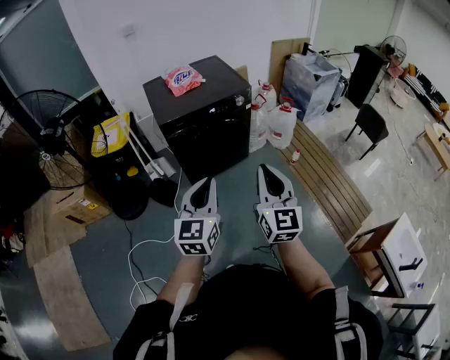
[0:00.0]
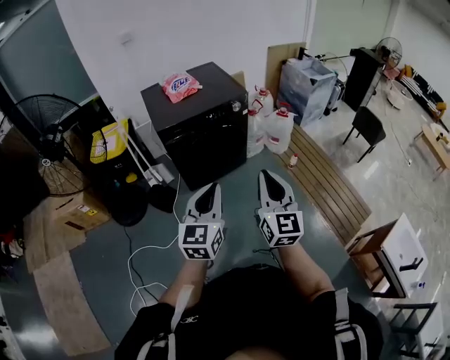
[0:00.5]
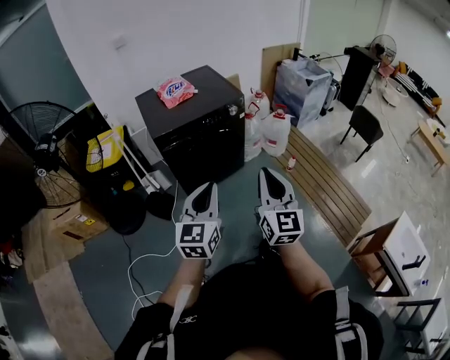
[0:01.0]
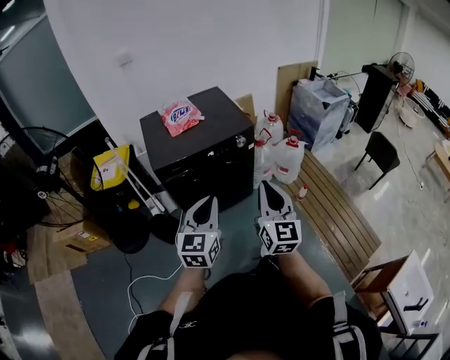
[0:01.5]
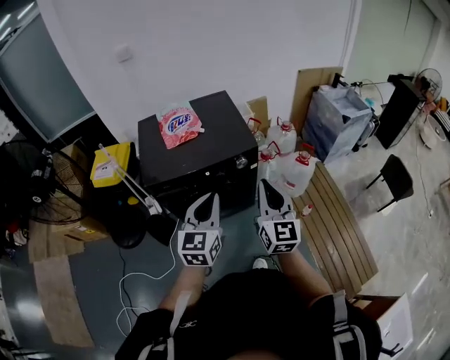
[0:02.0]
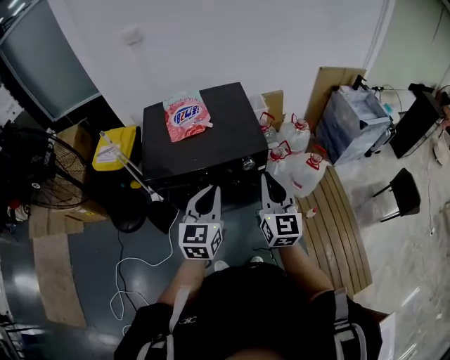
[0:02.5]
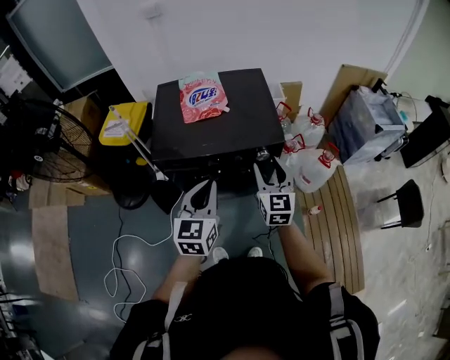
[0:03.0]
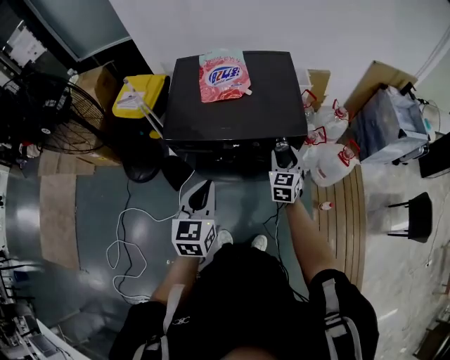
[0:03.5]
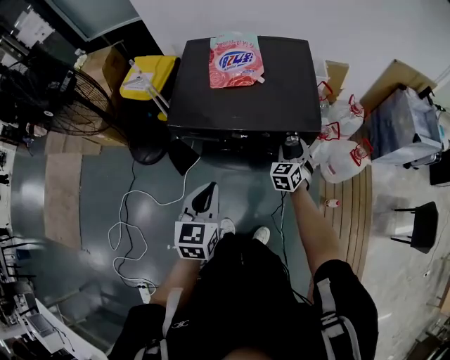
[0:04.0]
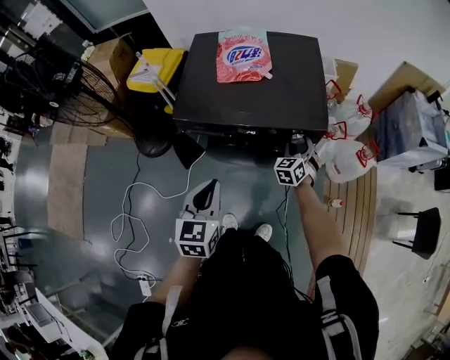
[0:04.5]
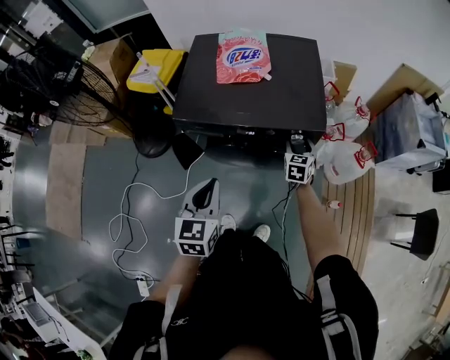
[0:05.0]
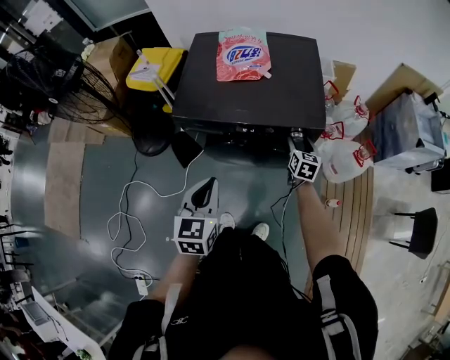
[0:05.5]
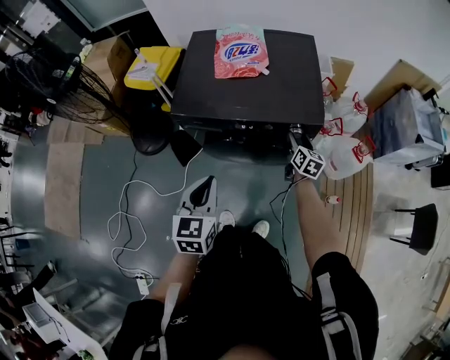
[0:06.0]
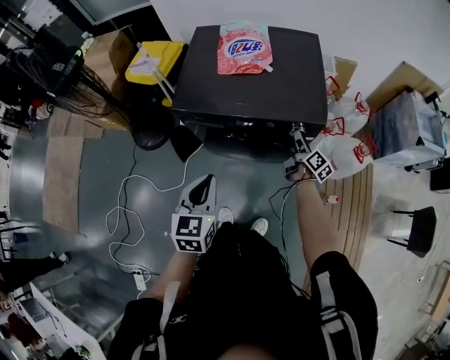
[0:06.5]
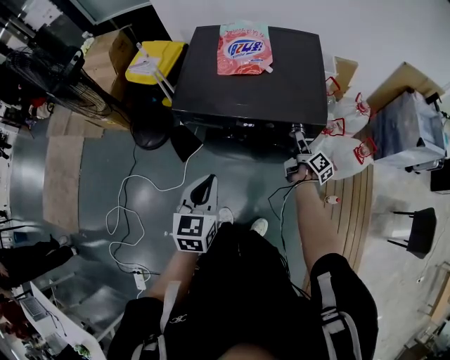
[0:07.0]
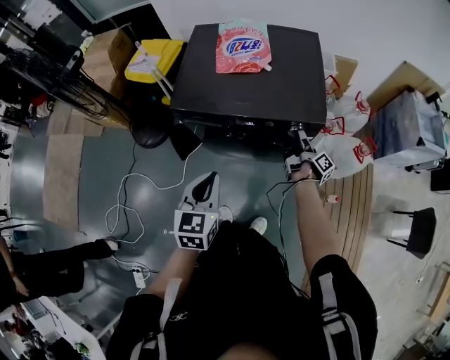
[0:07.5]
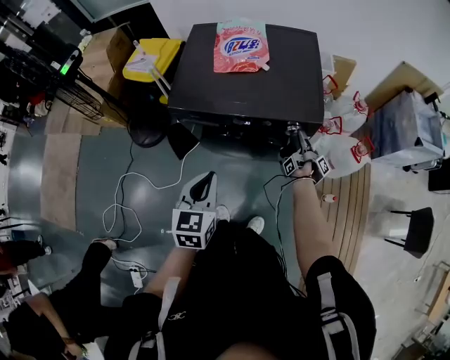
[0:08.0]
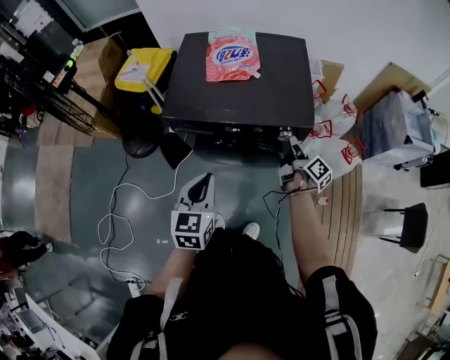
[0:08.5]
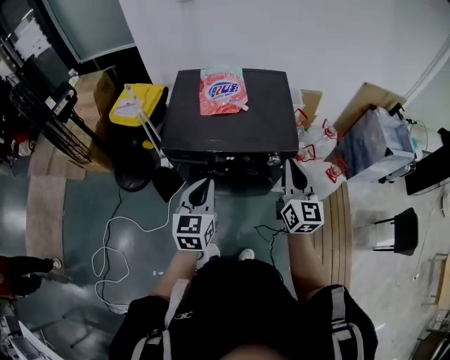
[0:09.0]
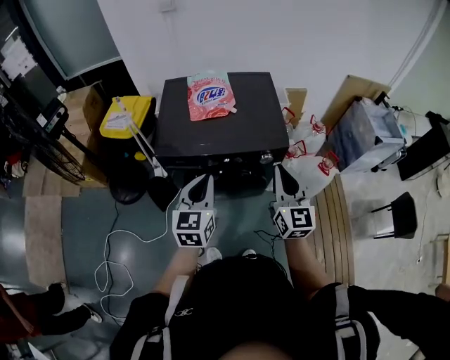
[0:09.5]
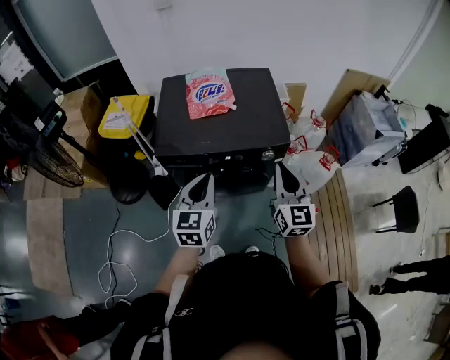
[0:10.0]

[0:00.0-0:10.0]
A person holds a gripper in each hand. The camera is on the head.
0:00.0 to 0:02.0: The grippers both shift forward by approximately 35 cm.
0:02.0 to 0:04.0: The right gripper shifts about 40 cm downward and forward, tilts its fingers roughly 30 degrees downward, and opens its fingers; the left gripper heads downward and to the left, covering roughly 15 cm, and rotates about 30 degrees.
0:04.0 to 0:06.0: The right gripper rolls clockwise, seen from behind, by approximately 50 degrees.
0:06.0 to 0:08.0: The right gripper rolls clockwise, seen from behind, by about 90 degrees.
0:08.0 to 0:10.0: The left gripper heads upward and forward, covering some 10 cm; the right gripper heads upward and backward, covering roughly 30 cm, rotates around the line of its fingers by some 120 degrees, counterclockwise from behind, and closes its fingers.

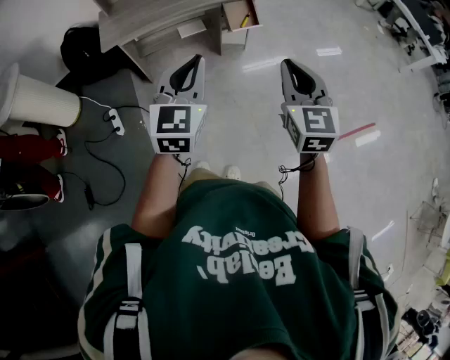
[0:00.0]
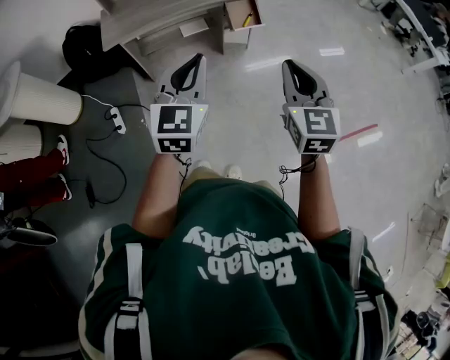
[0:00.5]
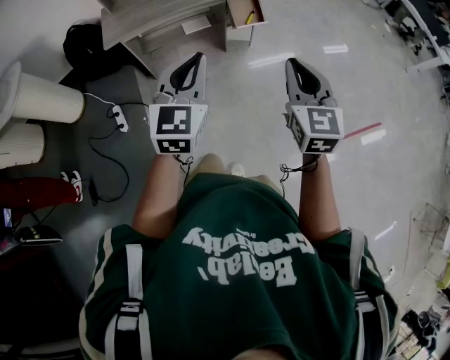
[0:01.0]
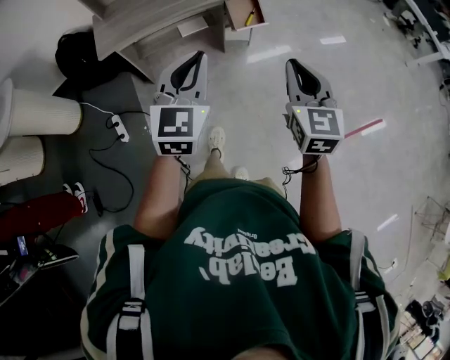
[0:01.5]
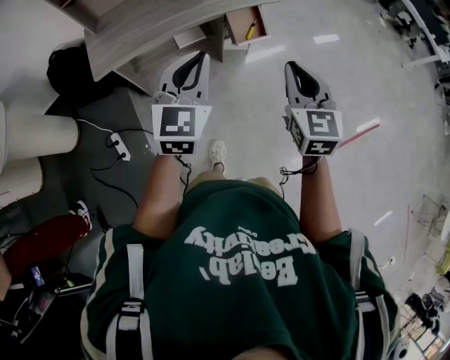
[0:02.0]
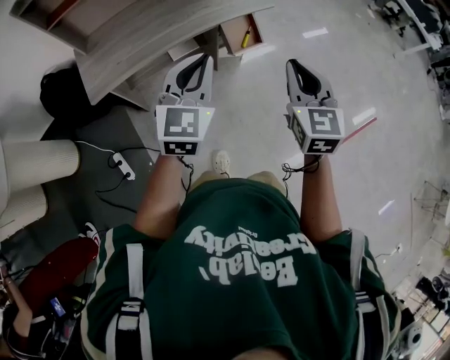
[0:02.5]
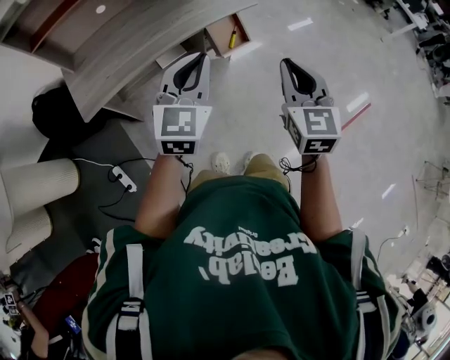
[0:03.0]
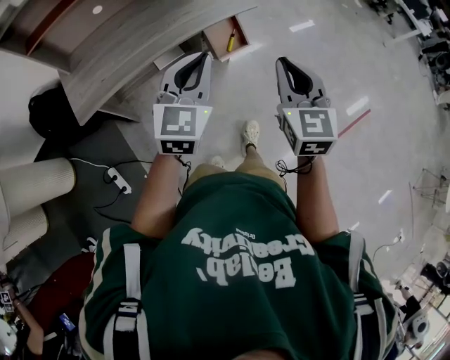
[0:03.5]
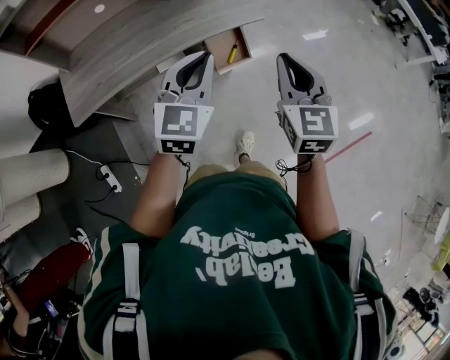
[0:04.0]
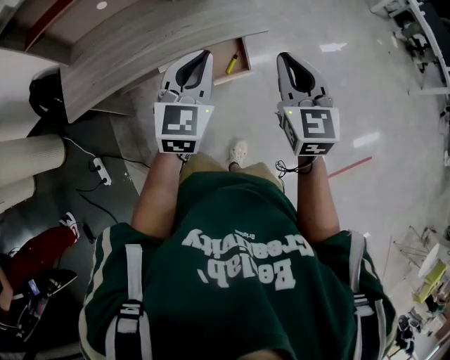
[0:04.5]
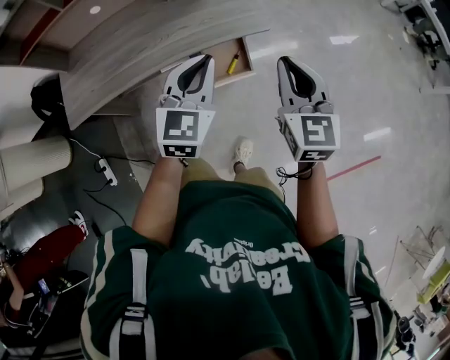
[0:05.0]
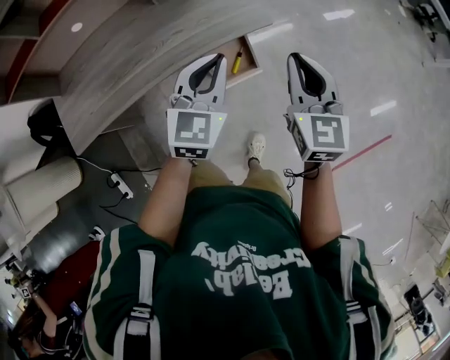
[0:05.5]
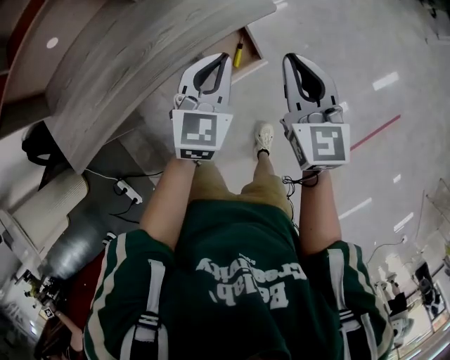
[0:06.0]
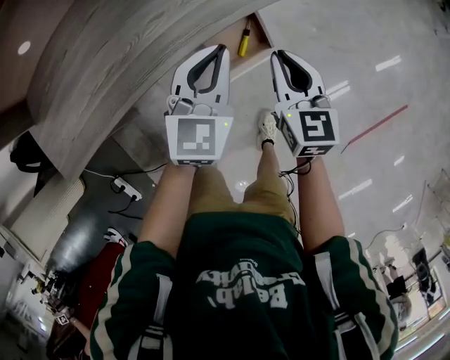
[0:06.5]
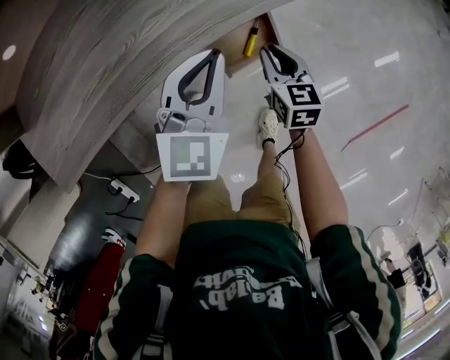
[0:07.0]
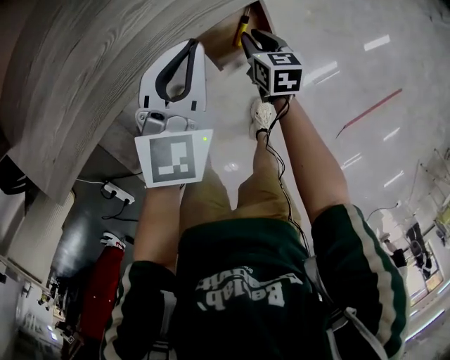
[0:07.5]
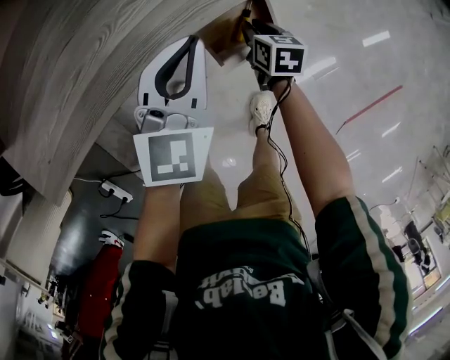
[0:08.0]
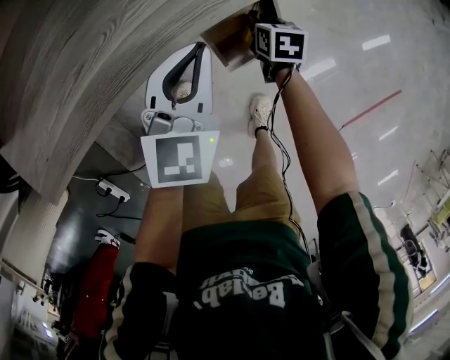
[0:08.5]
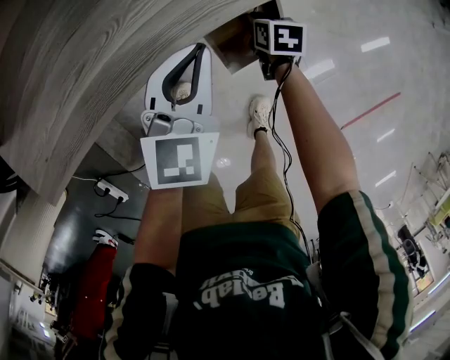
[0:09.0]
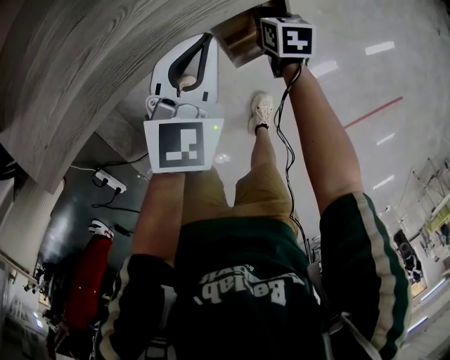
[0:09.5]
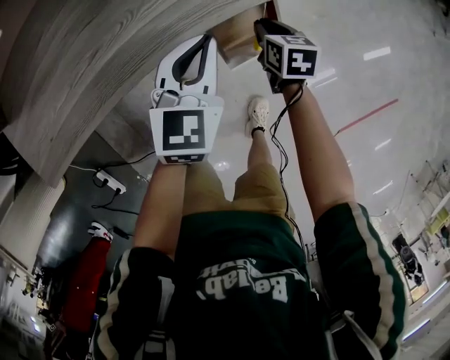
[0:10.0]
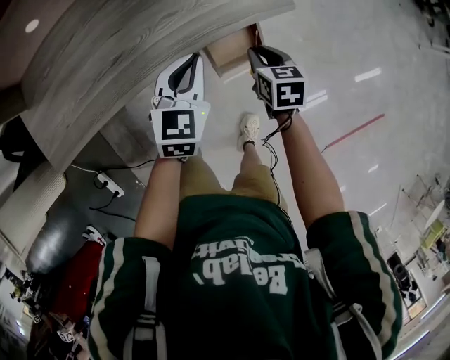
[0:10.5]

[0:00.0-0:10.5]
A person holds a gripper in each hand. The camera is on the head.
0:00.0 to 0:02.0: The grippers both shift forward by roughly 25 cm.
0:02.0 to 0:04.0: The grippers both shift forward by about 25 cm.
0:04.0 to 0:06.5: The left gripper heads forward and downward, covering some 40 cm. The right gripper heads downward and forward, covering approximately 50 cm, and rotates some 20 degrees.
0:06.5 to 0:08.5: The left gripper shifts some 10 cm downward and to the left. The right gripper goes approximately 30 cm downward, and points its fingers approximately 30 degrees further downward.
0:08.5 to 0:10.5: The right gripper shifts some 20 cm upward. Meanwhile the left gripper heads upward, covering roughly 10 cm.

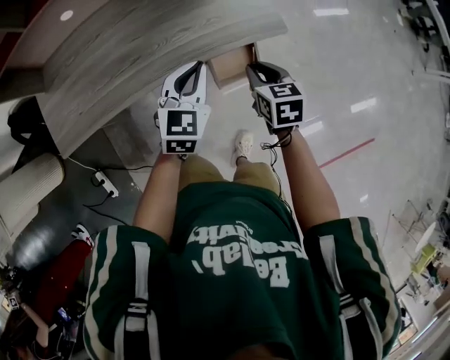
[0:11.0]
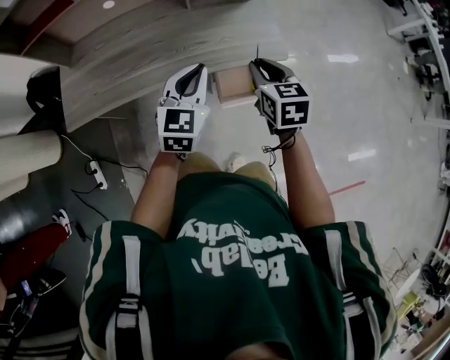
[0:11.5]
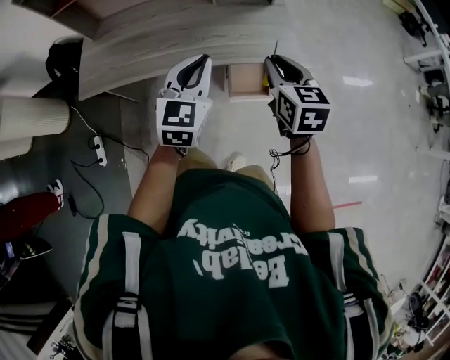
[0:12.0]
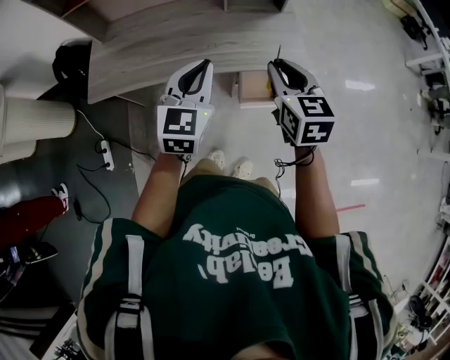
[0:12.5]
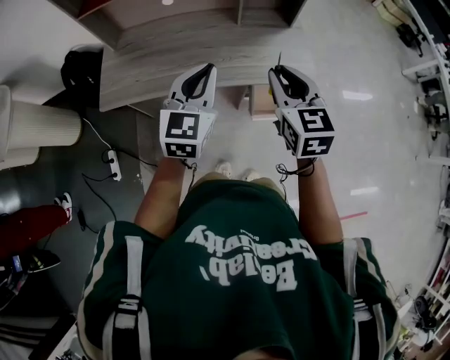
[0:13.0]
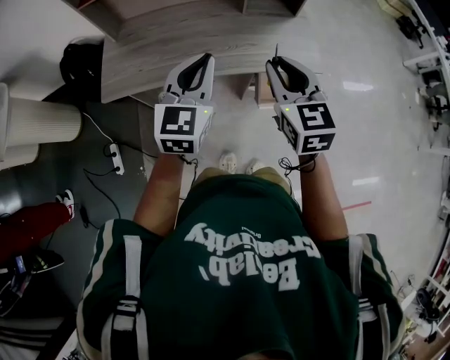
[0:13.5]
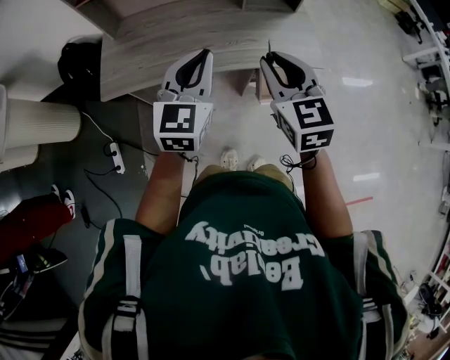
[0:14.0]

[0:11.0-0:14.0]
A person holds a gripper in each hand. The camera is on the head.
0:11.0 to 0:12.5: The right gripper shifts some 25 cm upward, and changes its angle by about 30 degrees; the left gripper goes some 20 cm upward and backward, and swivels about 20 degrees.
0:12.5 to 0:14.0: The two grippers go about 15 cm to the left.

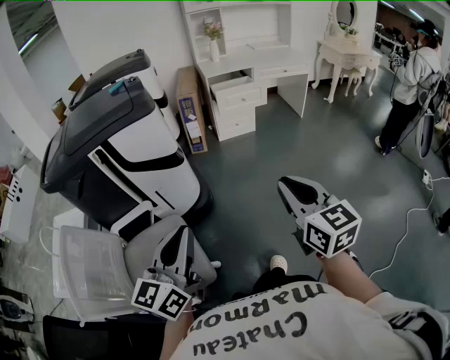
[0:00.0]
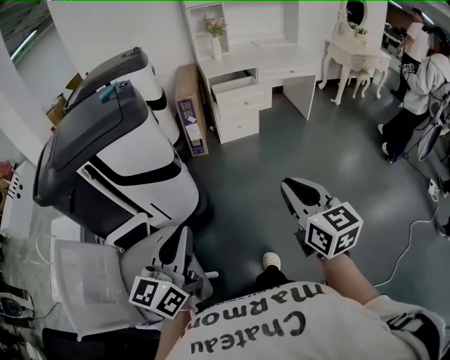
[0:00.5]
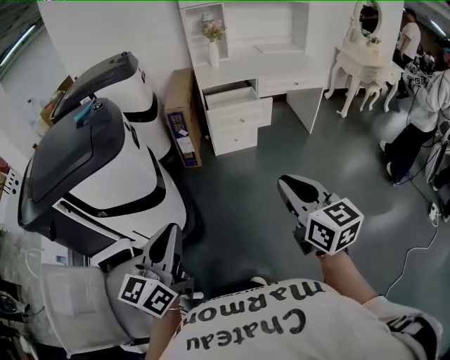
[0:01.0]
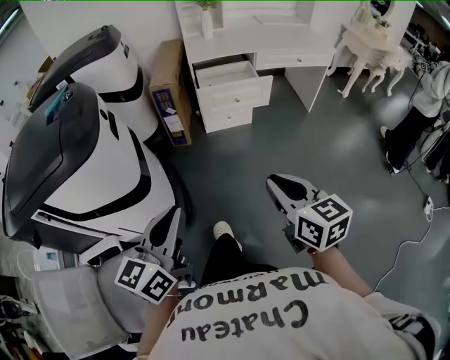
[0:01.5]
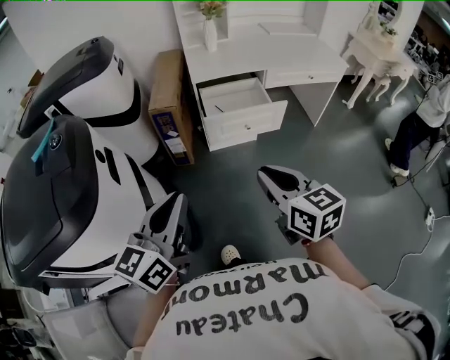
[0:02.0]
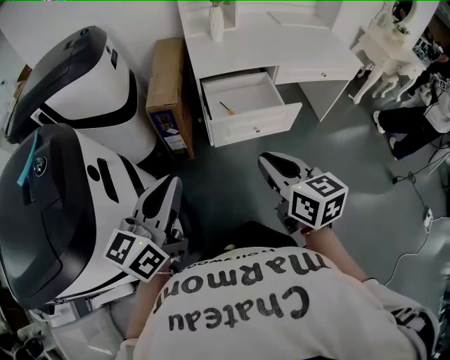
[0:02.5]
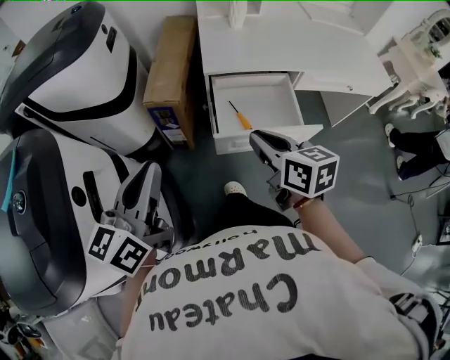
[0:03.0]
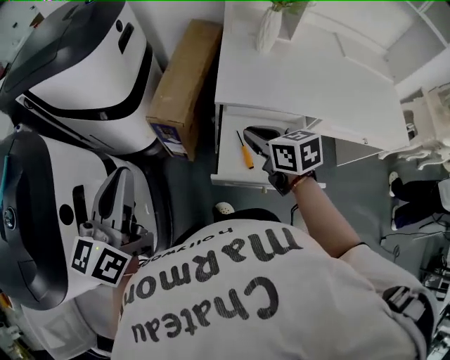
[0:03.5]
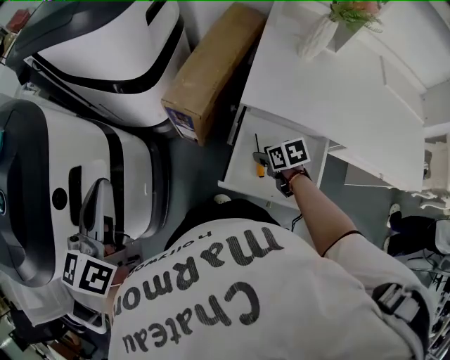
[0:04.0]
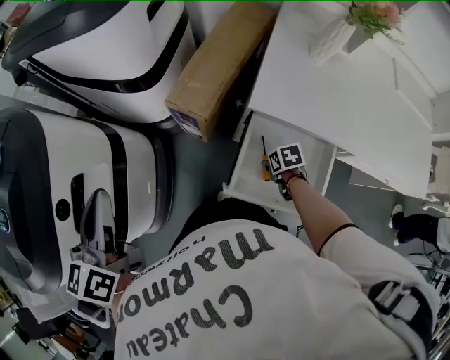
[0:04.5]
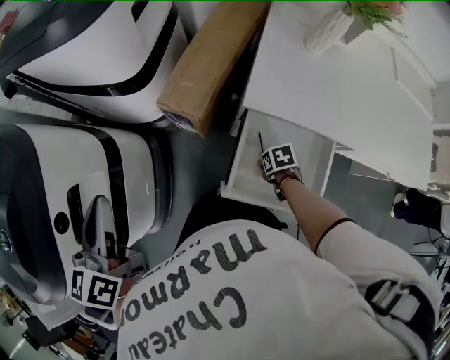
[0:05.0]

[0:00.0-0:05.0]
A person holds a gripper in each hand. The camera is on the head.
0:00.0 to 0:02.5: Both grippers are carried forward, about 70 cm.
0:02.5 to 0:05.0: The right gripper goes about 40 cm downward, angles its fingers downward, by about 60 degrees, and opens; the left gripper shifts by some 30 cm, and rotates approximately 50 degrees.
